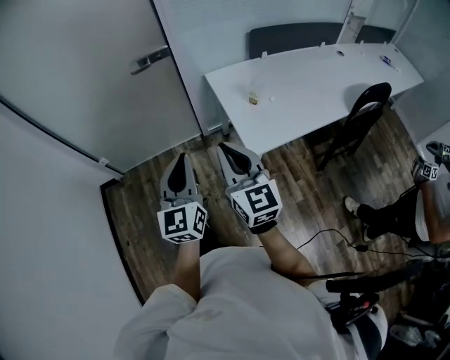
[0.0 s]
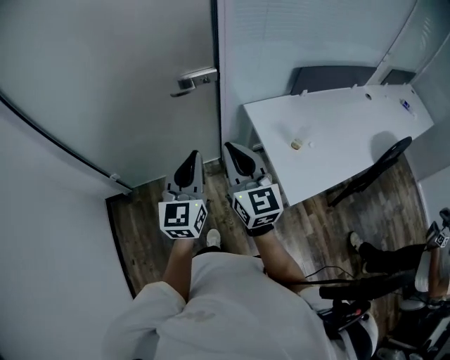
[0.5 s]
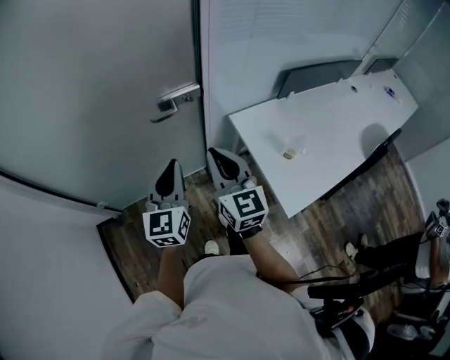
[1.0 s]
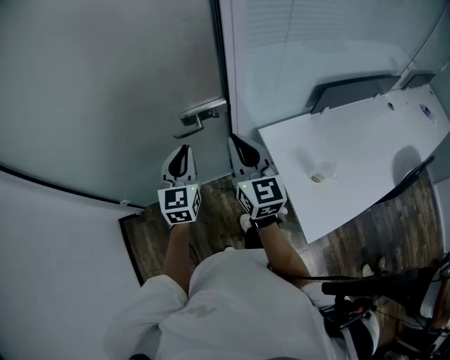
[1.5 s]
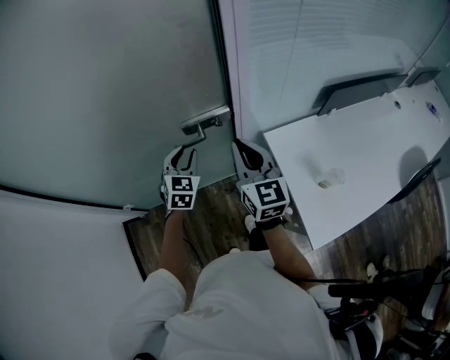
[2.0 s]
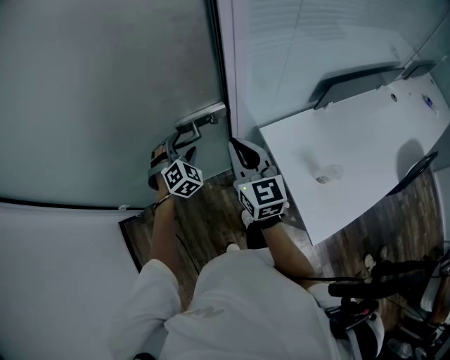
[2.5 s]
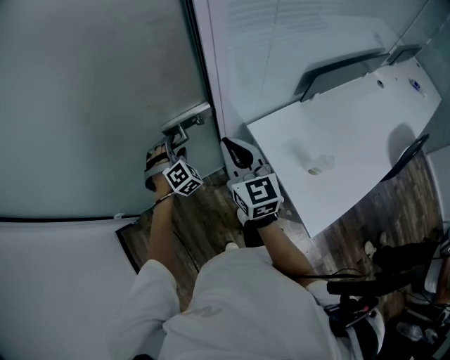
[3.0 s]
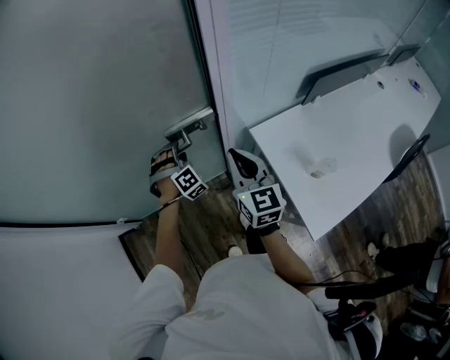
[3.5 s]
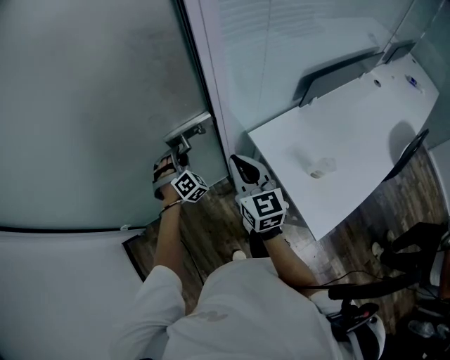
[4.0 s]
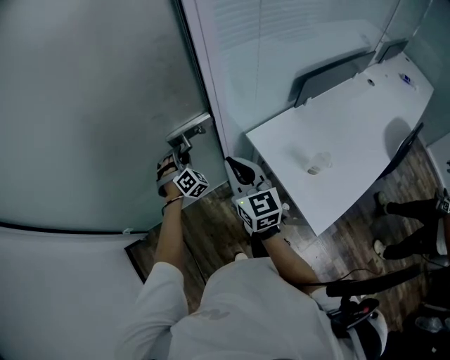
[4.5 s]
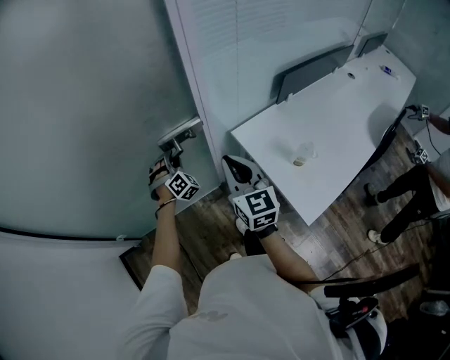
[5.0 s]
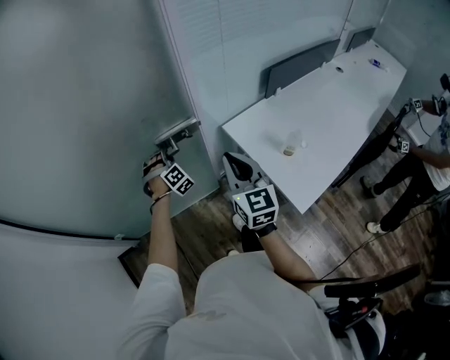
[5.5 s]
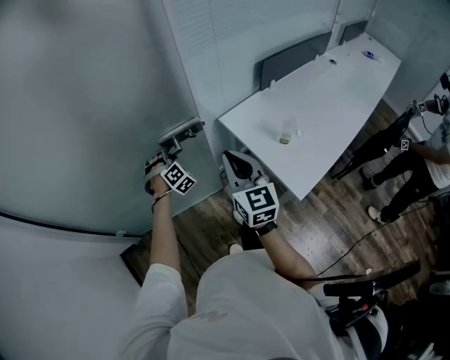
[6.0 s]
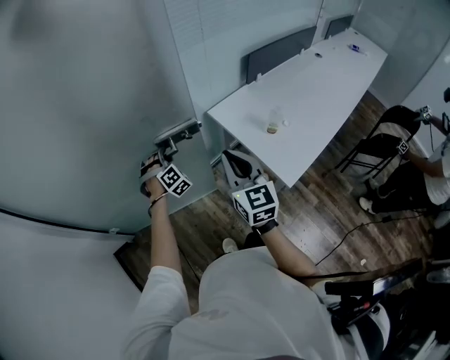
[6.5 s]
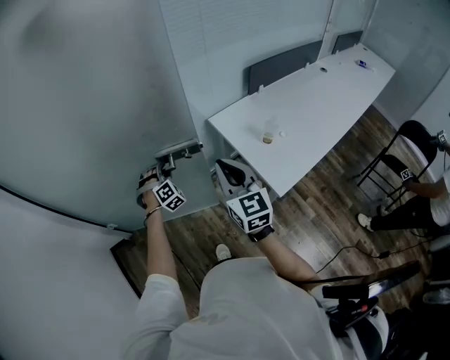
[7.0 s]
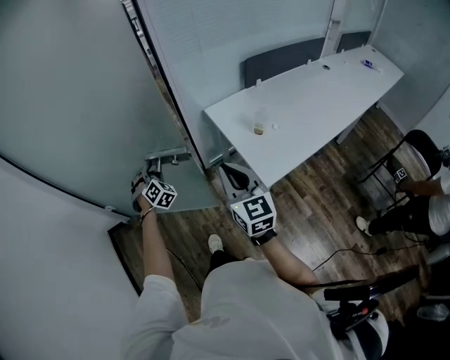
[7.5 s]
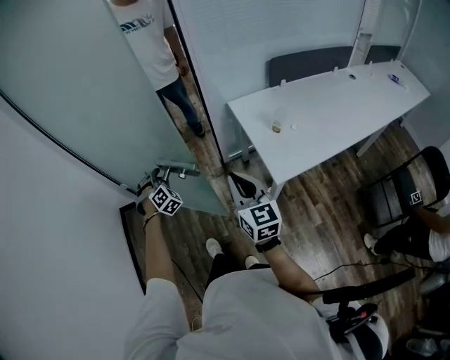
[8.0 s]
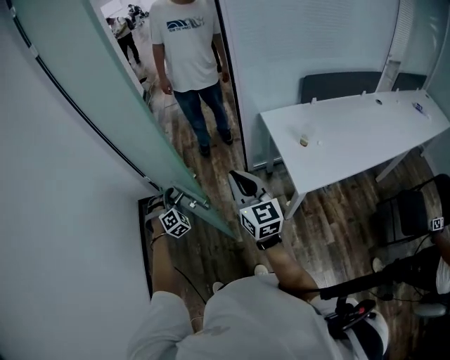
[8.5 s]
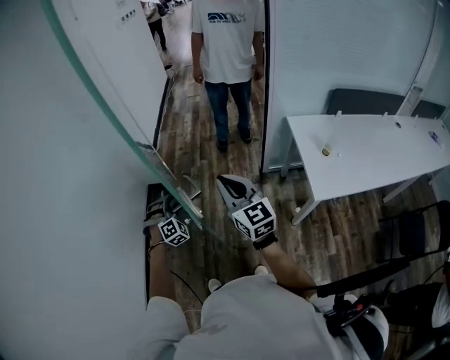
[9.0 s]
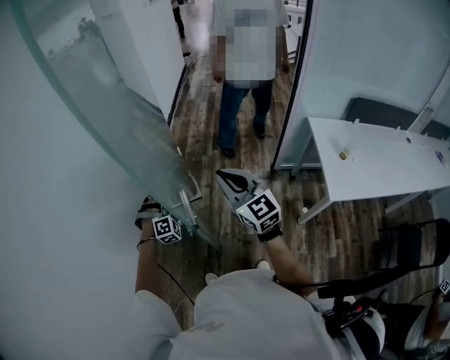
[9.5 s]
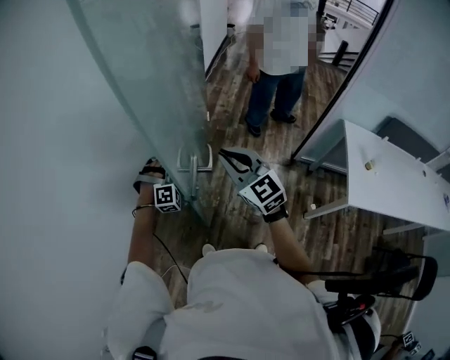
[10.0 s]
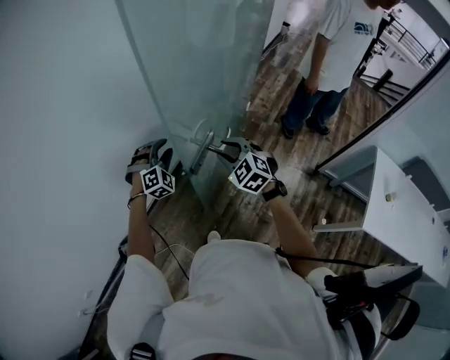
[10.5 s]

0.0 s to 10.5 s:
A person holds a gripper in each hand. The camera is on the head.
0.0 to 2.0 s: The two grippers travel together, forward, about 60 cm. The left gripper turns by roughly 40 degrees.
2.0 to 4.0 s: The right gripper ends up roughly 5 cm from where it was; the left gripper moves downward and forward, roughly 10 cm, rolls clockwise, seen from behind, by approximately 50 degrees, and opens, then closes once more.
4.0 to 6.5 s: Both grippers move backward, about 20 cm.
6.5 to 8.5 s: The left gripper travels backward and to the left by about 40 cm, and turns by some 20 degrees. The right gripper moves backward, roughly 25 cm, and swivels approximately 30 degrees.
8.5 to 10.5 s: Both grippers are carried roughly 60 cm. The left gripper changes its angle by some 30 degrees. Meanwhile the right gripper tilts its fingers approximately 40 degrees downward, and opens up.

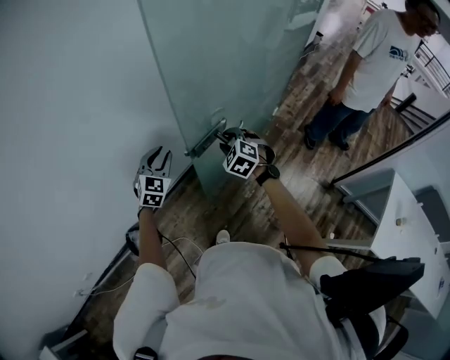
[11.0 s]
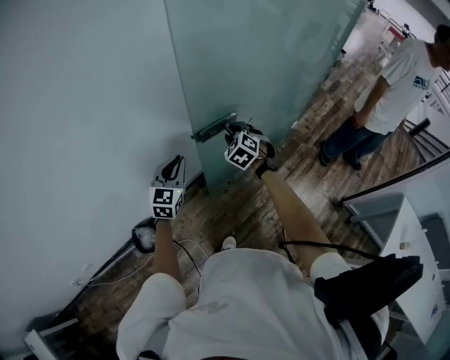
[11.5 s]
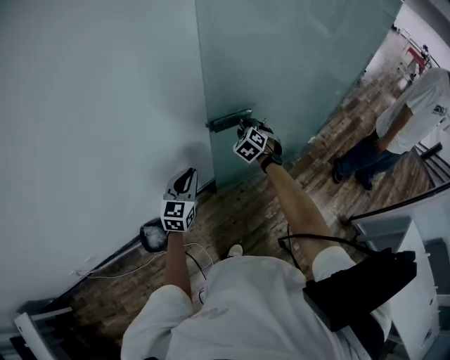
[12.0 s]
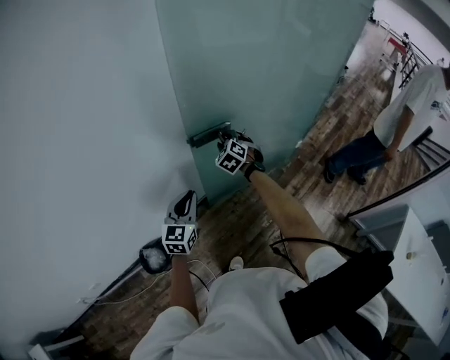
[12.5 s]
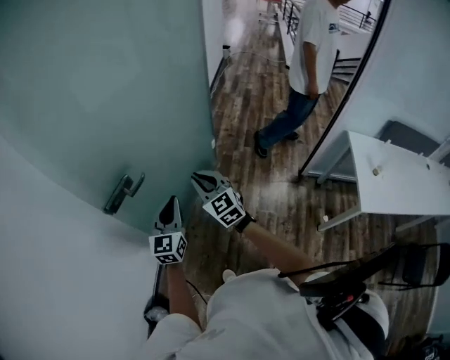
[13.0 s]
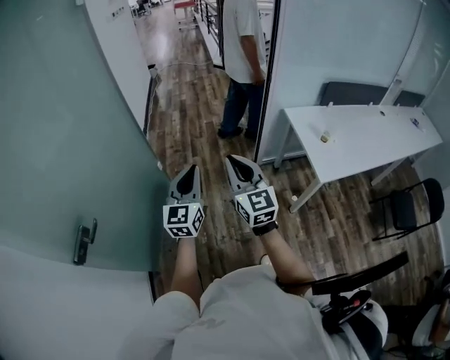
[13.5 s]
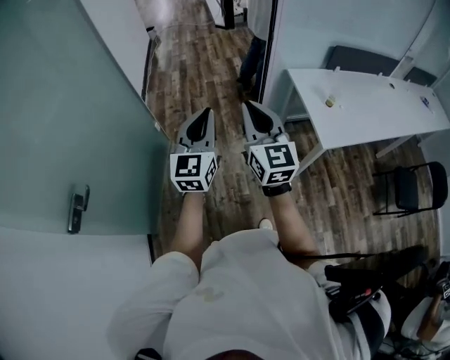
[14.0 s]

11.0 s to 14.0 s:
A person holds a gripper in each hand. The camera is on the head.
11.0 to 12.5 s: The right gripper heads forward and to the left, covering about 20 cm, while the left gripper is displaced backward by approximately 5 cm, and turns by roughly 30 degrees.
12.5 to 14.0 s: The two grippers travel together, approximately 70 cm. The right gripper angles its fingers upward, by about 50 degrees, and closes up. The left gripper swivels some 60 degrees.

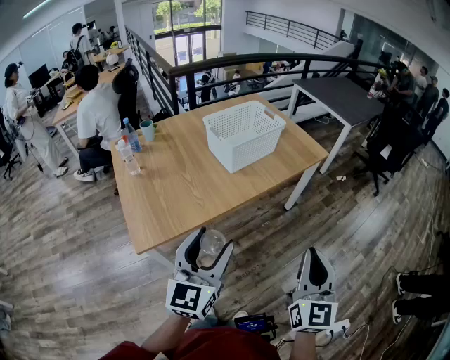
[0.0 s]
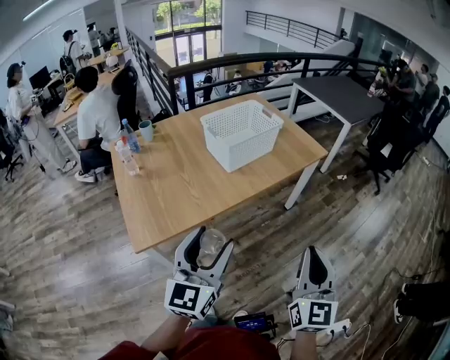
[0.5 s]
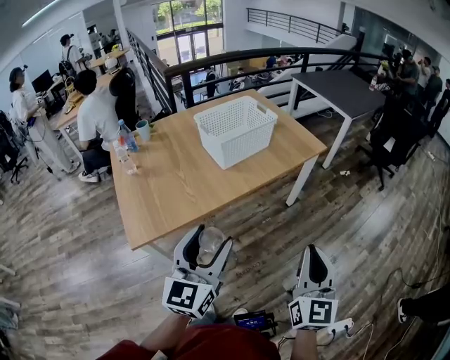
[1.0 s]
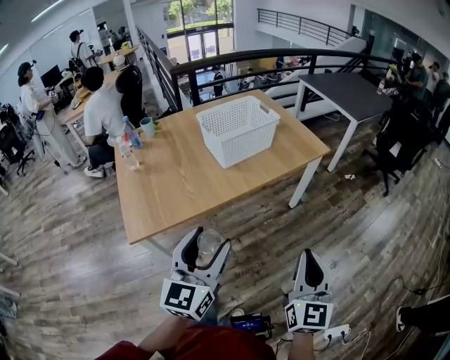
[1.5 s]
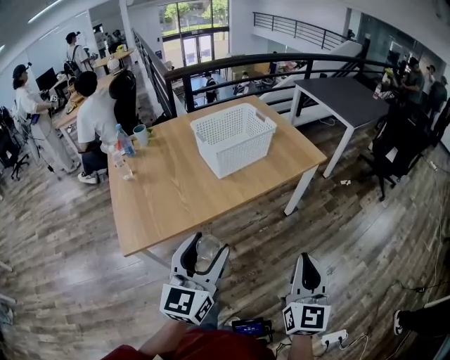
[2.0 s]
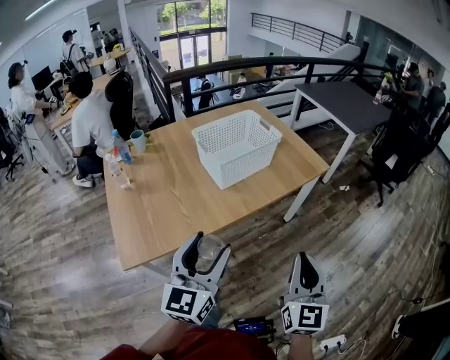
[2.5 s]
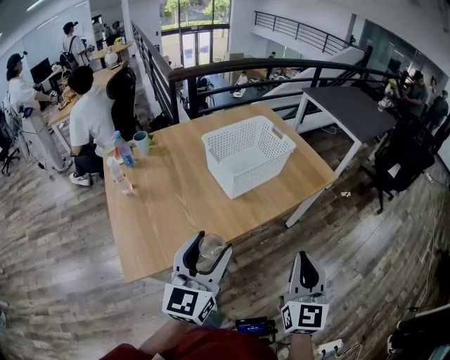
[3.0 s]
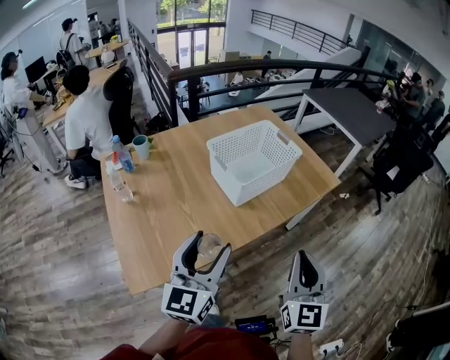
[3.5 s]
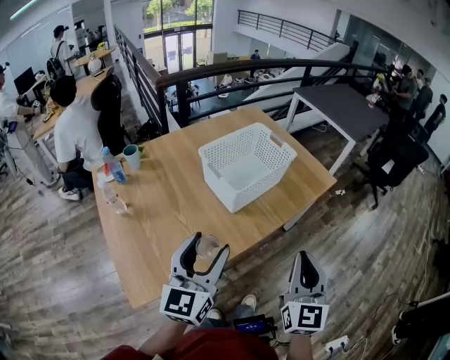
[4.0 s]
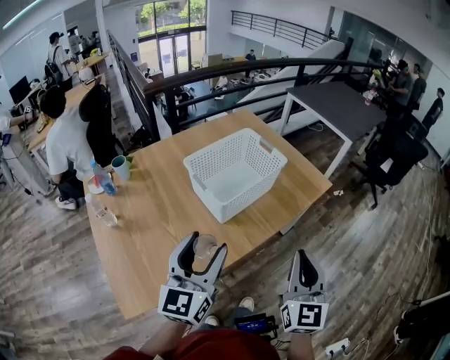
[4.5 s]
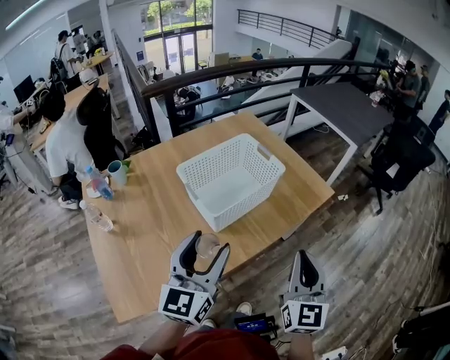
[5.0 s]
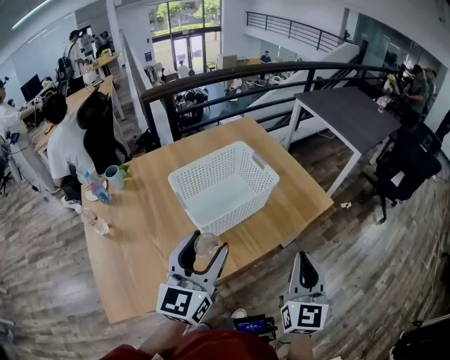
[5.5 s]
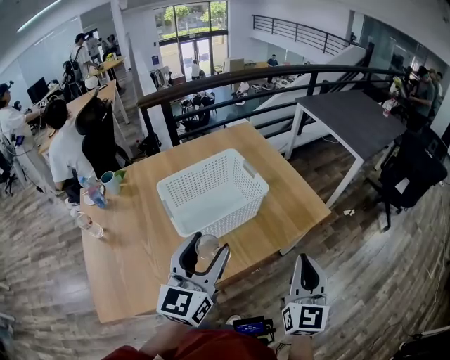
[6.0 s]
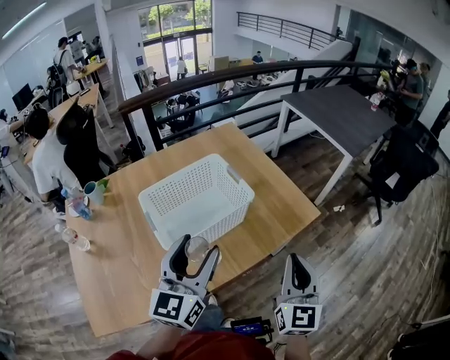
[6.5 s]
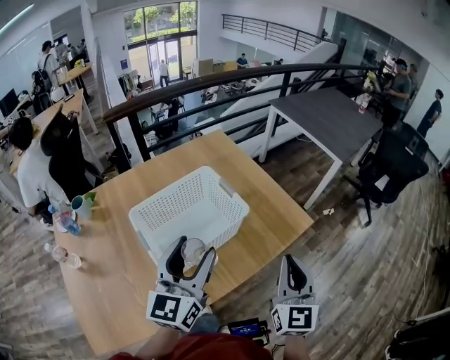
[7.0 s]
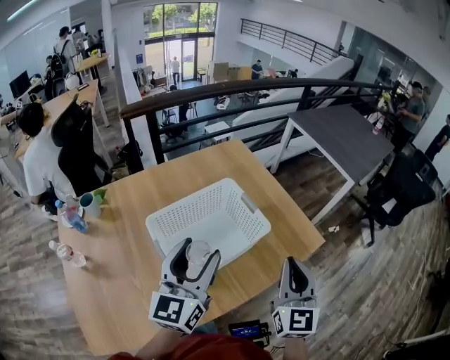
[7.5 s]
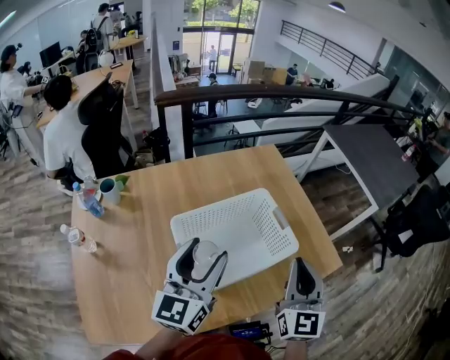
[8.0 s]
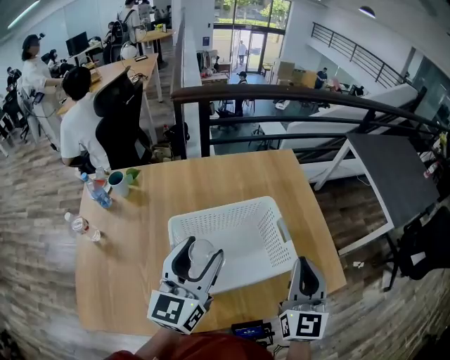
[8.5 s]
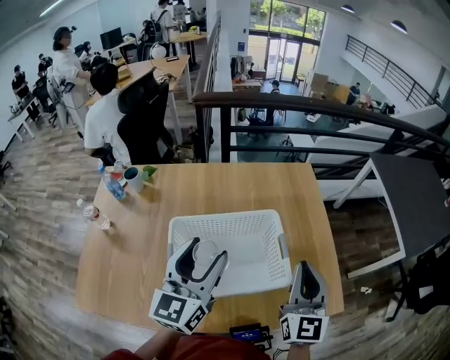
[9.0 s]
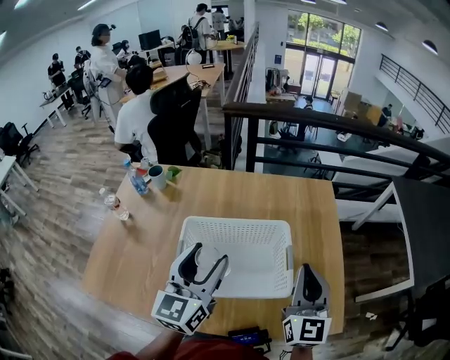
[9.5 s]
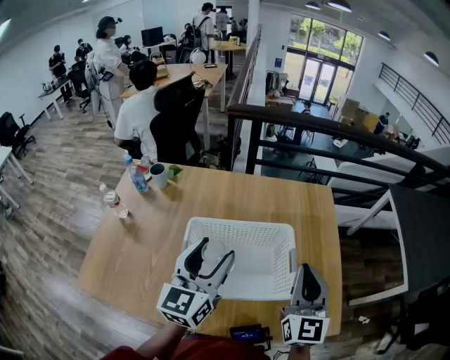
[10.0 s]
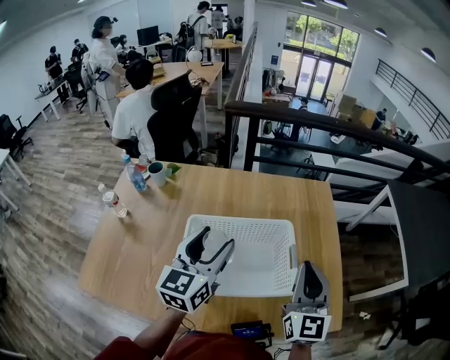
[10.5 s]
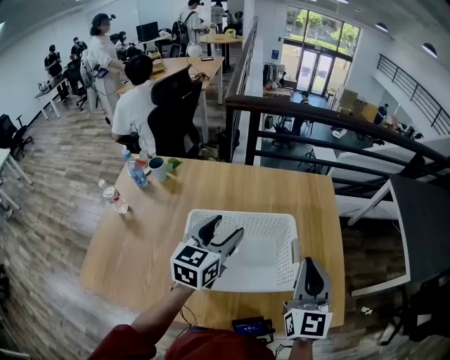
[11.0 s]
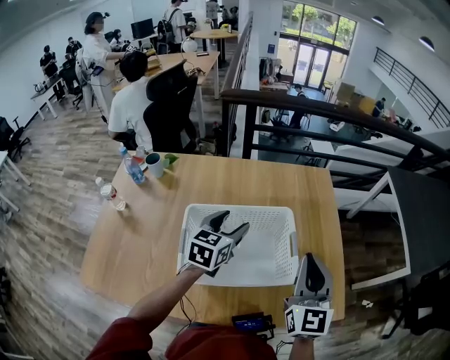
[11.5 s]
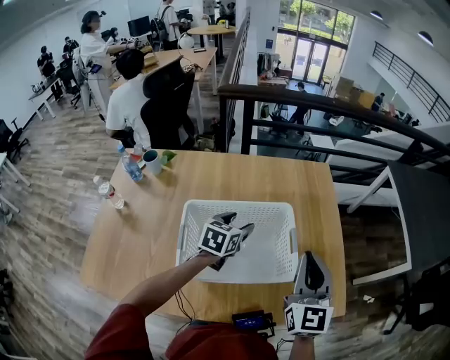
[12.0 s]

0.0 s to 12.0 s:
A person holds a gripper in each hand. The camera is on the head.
0.0 to 2.0 s: Both grippers move to the right, roughly 5 cm.
2.0 to 4.0 s: Both grippers travel together forward and to the left, approximately 20 cm.
4.0 to 6.0 s: Both grippers move forward and to the right, about 20 cm.
6.0 to 8.0 s: Both grippers travel together forward and to the left, some 20 cm.
8.0 to 10.0 s: The right gripper ends up some 10 cm from where it was, and swivels approximately 30 degrees, while the left gripper rotates about 20 degrees.
10.0 to 12.0 s: The left gripper travels downward and forward by some 20 cm, and tilts its fingers roughly 30 degrees downward.

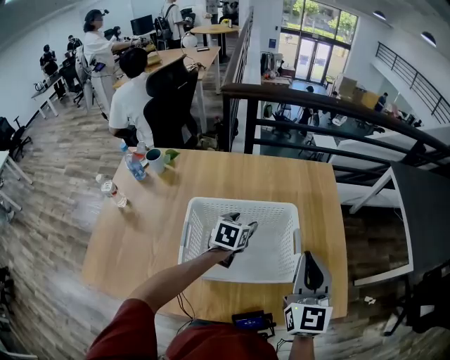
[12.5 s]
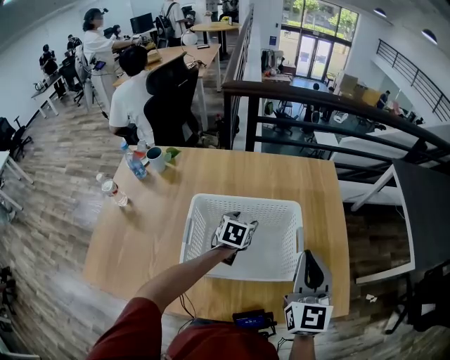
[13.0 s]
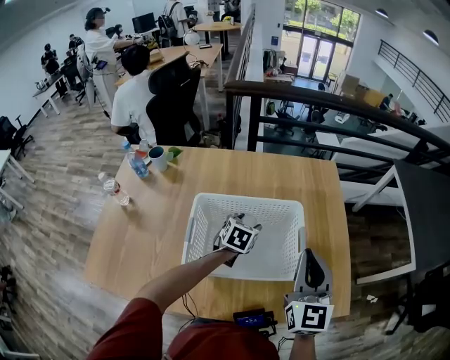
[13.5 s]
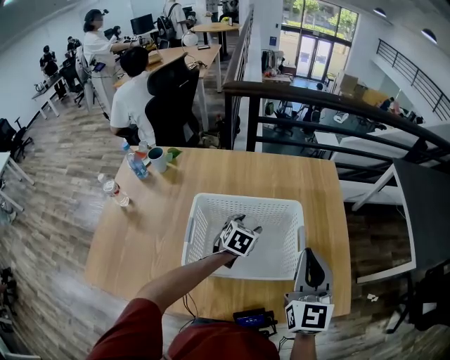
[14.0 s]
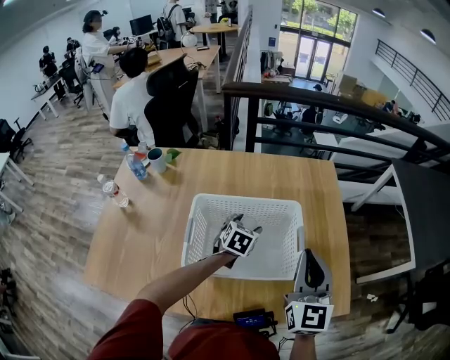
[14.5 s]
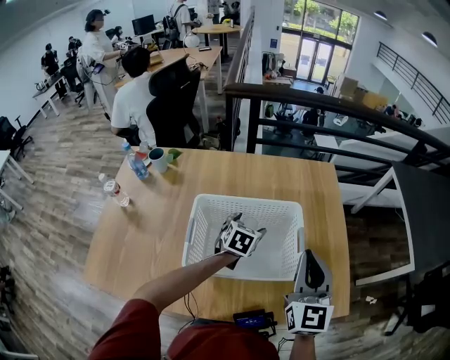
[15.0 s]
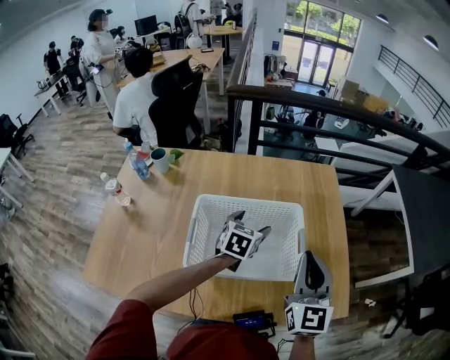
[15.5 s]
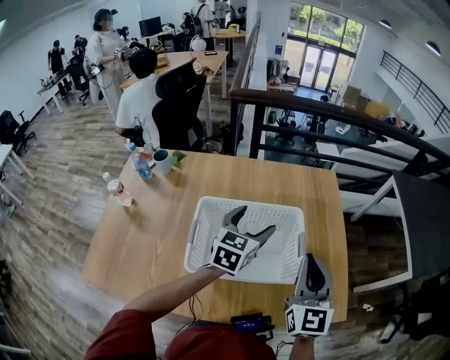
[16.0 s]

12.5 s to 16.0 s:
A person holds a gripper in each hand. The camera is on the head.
12.5 to 14.5 s: The grippers stay close to where they were, moving slightly.
14.5 to 16.0 s: The left gripper goes approximately 15 cm upward, and swivels approximately 20 degrees.
